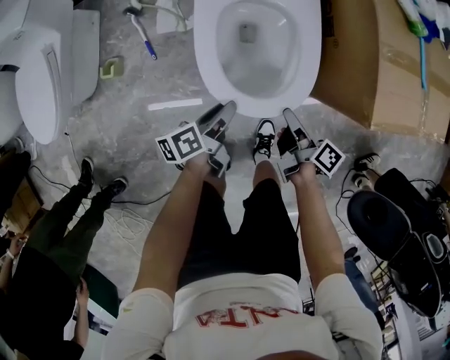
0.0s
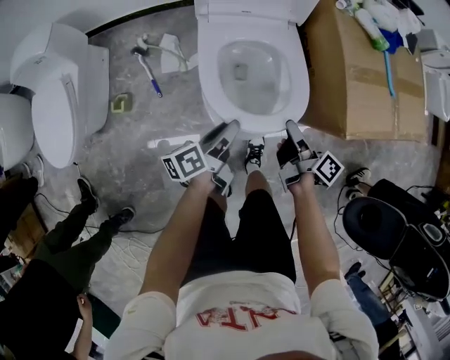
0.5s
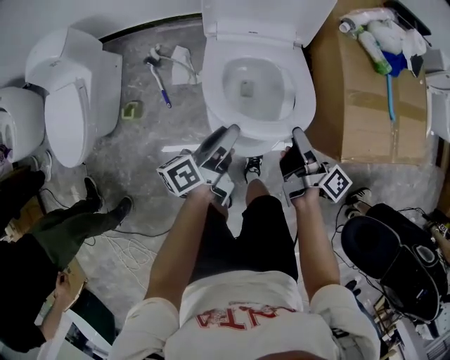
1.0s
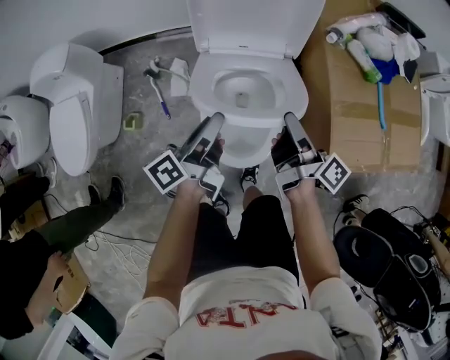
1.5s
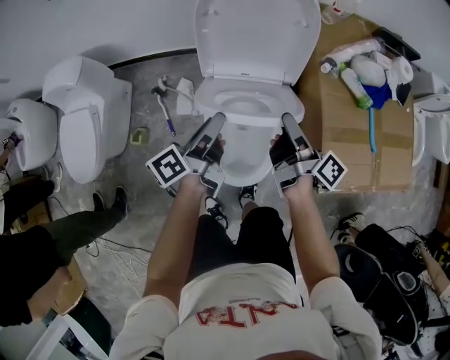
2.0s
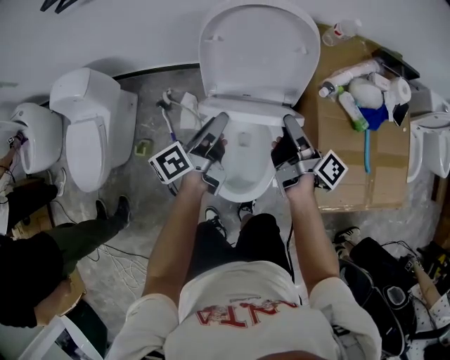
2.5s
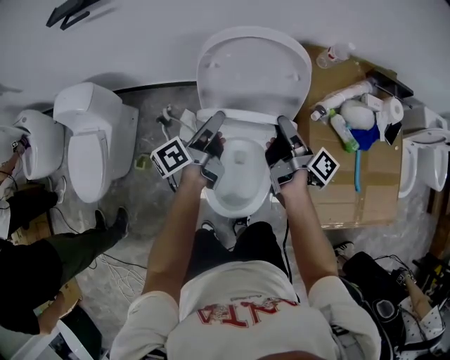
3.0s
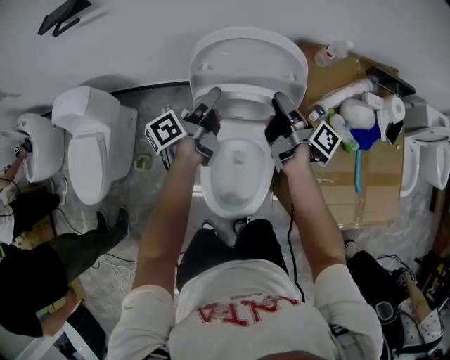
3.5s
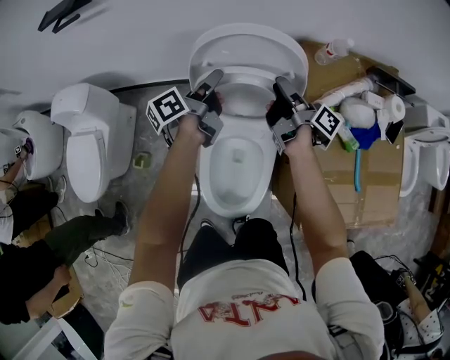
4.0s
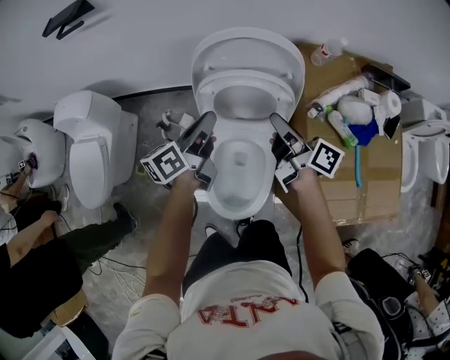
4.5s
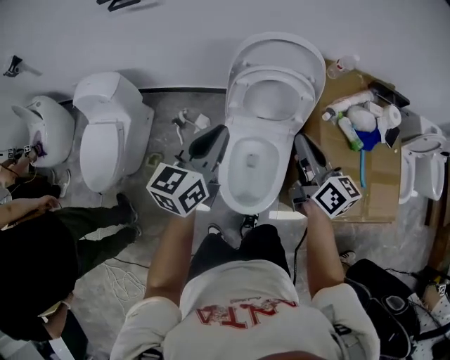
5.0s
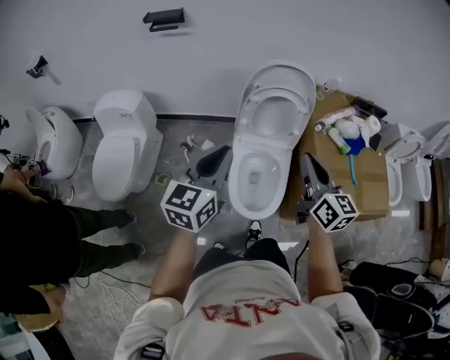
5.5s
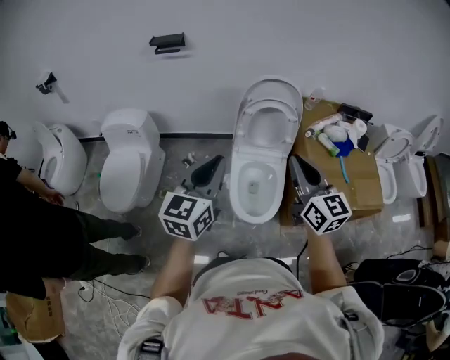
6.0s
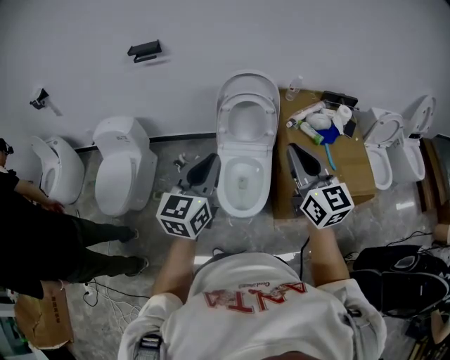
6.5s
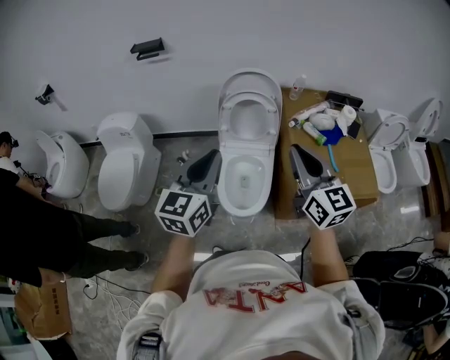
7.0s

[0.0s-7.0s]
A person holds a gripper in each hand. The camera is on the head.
0.0s to 2.0s: Both grippers travel together upward and forward, approximately 35 cm. The right gripper turns by some 20 degrees. Meanwhile the left gripper swivels some 20 degrees.
2.0s to 3.5s: The grippers both shift forward by approximately 20 cm.
3.5s to 5.0s: Both grippers move backward and upward, roughly 25 cm. The left gripper twists about 50 degrees clockwise, seen from behind, and closes; the right gripper twists roughly 50 degrees counterclockwise, seen from behind, and closes up.
5.0s to 7.0s: The two grippers go about 30 cm backward and upward. The right gripper changes its angle by approximately 30 degrees.

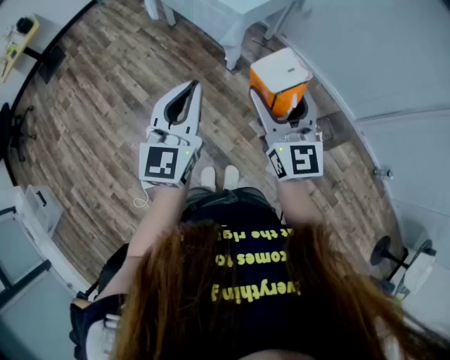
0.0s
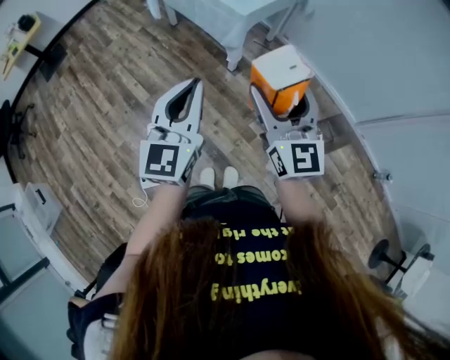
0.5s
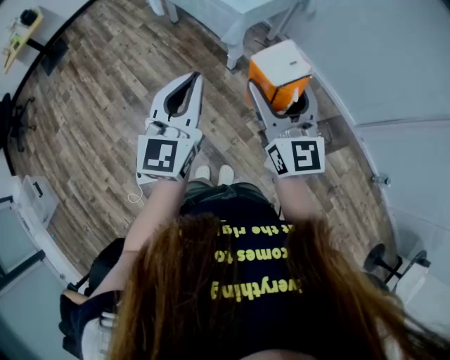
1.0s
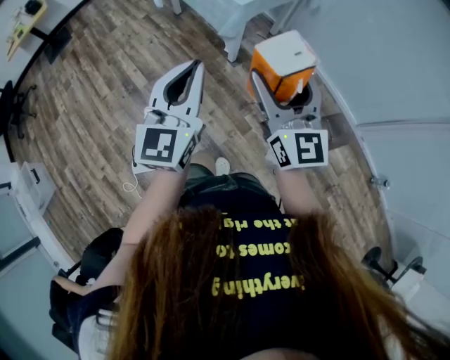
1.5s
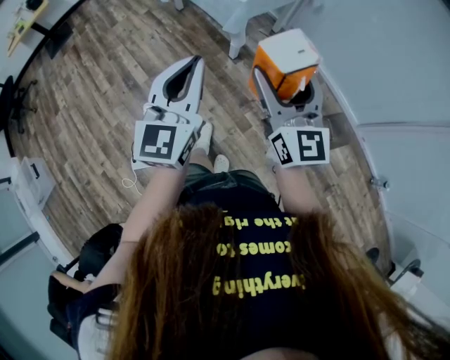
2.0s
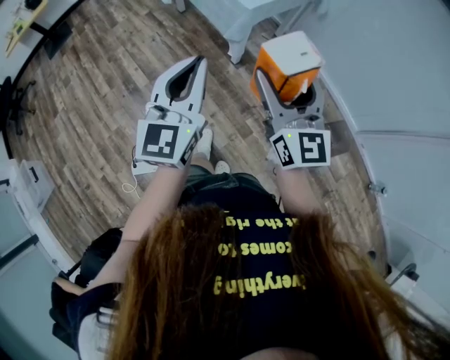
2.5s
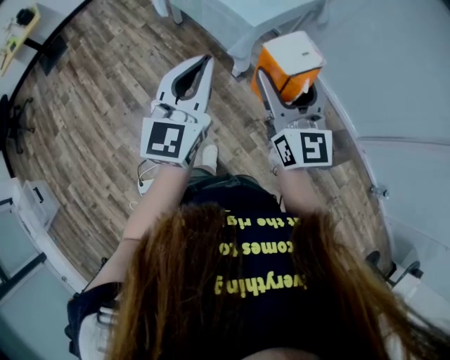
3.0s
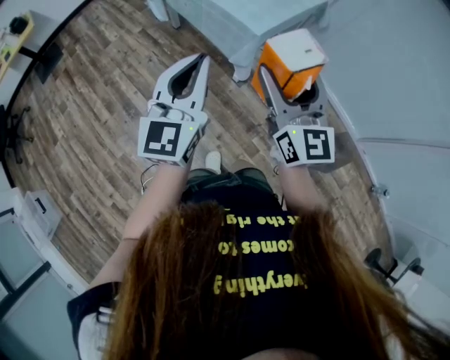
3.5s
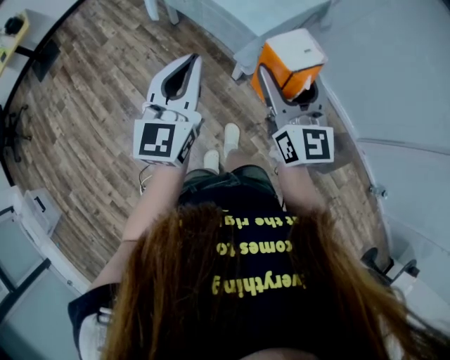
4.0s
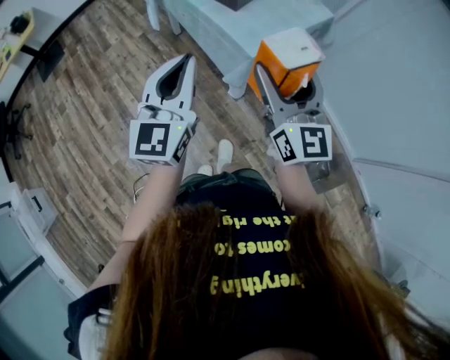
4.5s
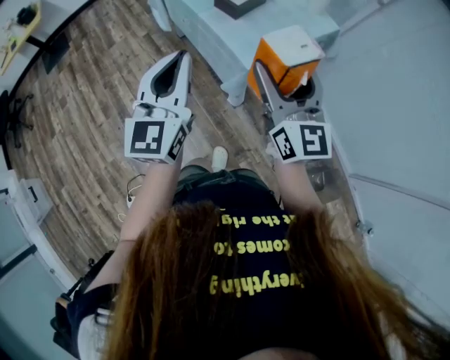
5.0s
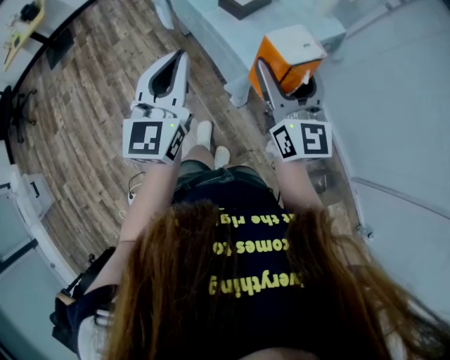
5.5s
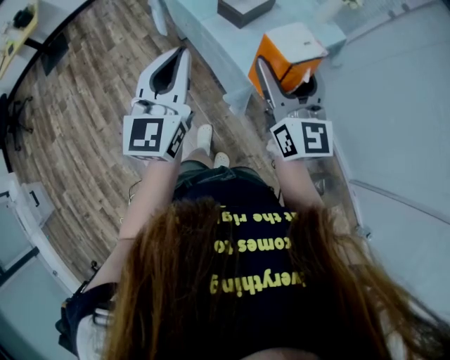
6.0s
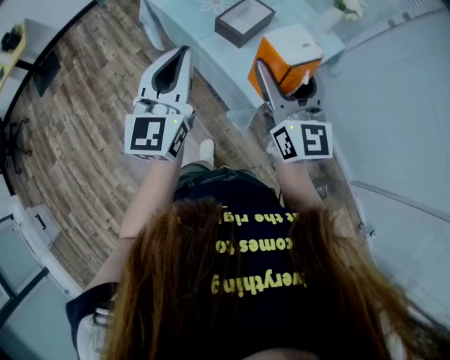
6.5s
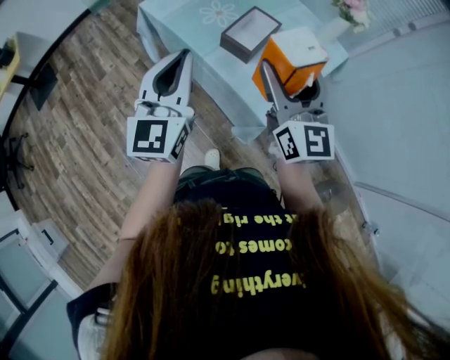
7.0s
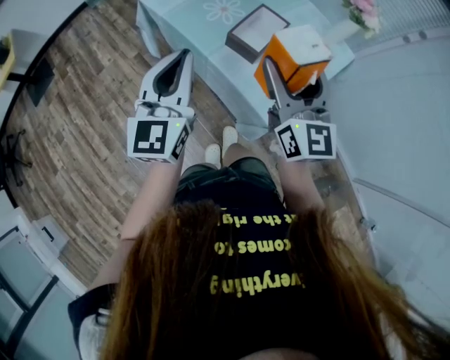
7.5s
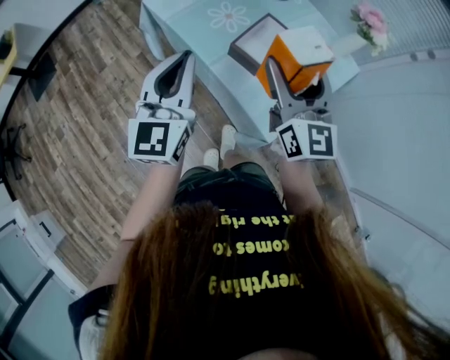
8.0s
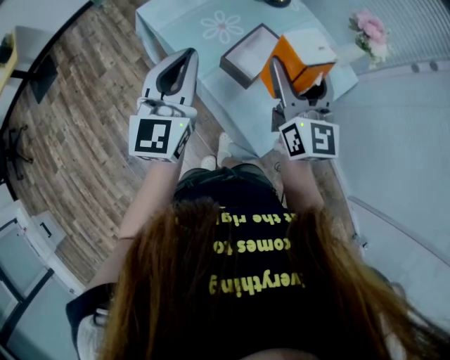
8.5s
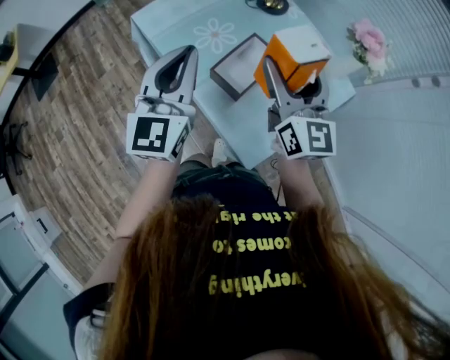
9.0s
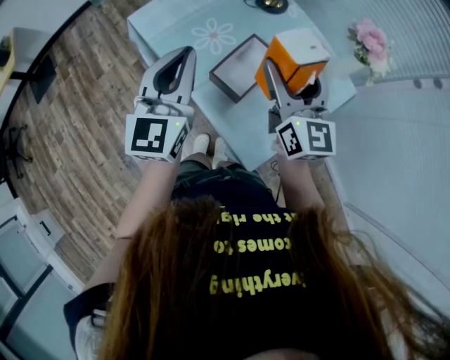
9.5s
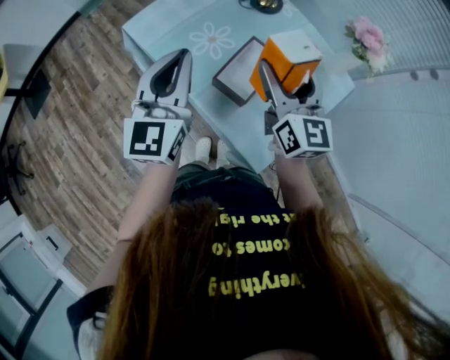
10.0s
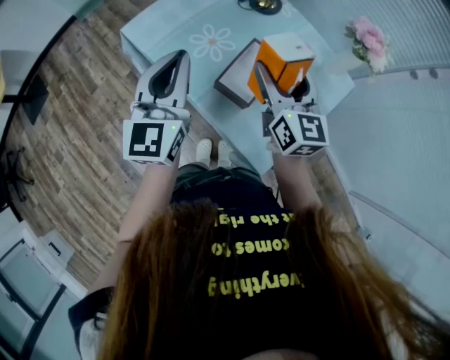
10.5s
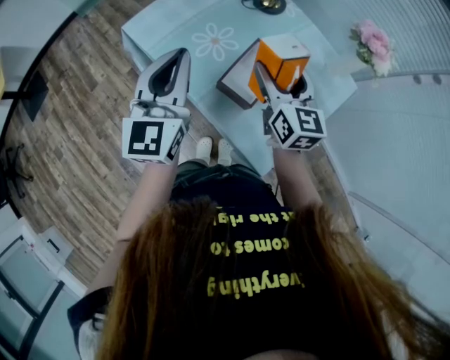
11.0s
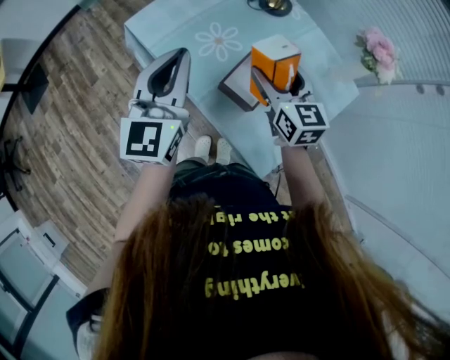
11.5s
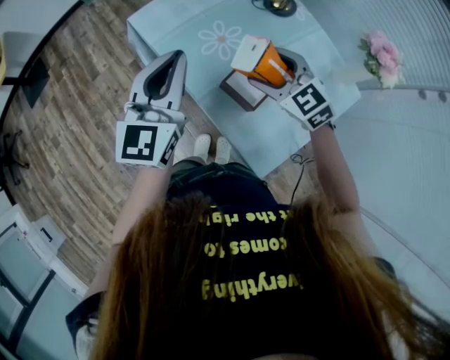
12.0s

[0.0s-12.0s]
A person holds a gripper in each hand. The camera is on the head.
0.0s to 2.0s: Both grippers travel together to the right, about 5 cm.
2.0s to 4.0s: The left gripper heads forward and to the left, covering roughly 25 cm. The right gripper goes roughly 25 cm forward.
4.0s to 6.0s: The grippers both shift forward by about 20 cm.
6.0s to 8.0s: Both grippers travel together forward, approximately 25 cm.
8.0s to 10.0s: The grippers both shift forward by approximately 15 cm.
10.0s to 12.0s: The right gripper is displaced downward and to the left by approximately 15 cm, and tilts its fingers some 30 degrees downward.

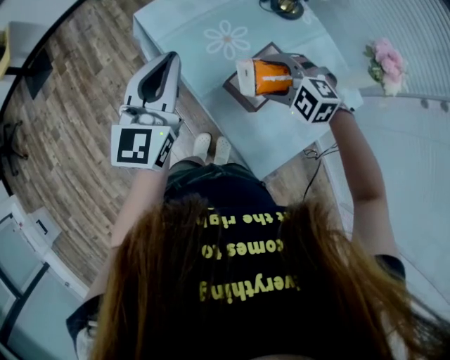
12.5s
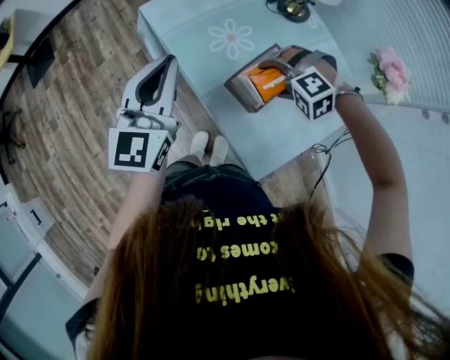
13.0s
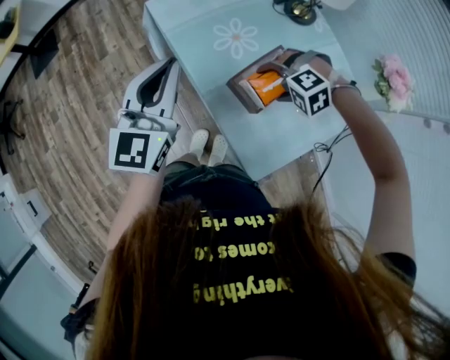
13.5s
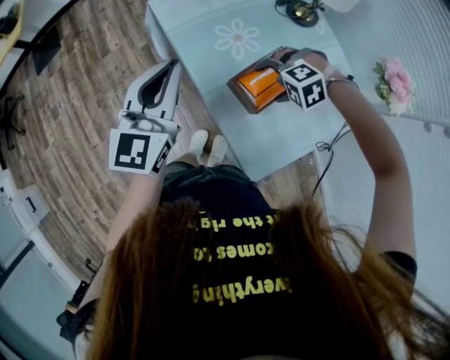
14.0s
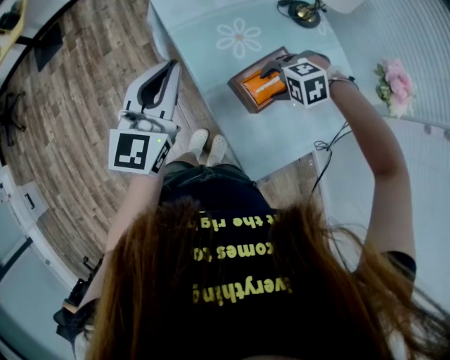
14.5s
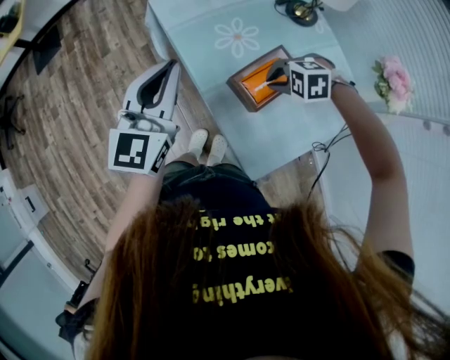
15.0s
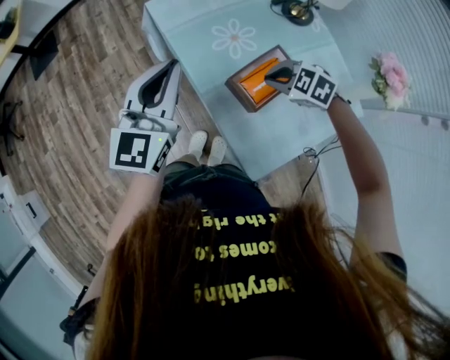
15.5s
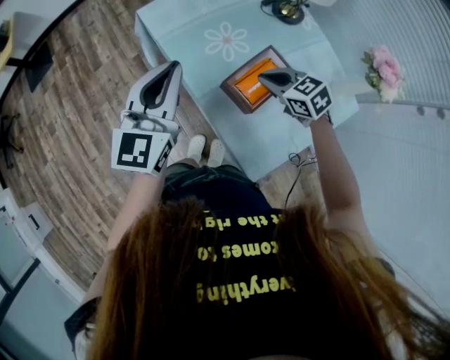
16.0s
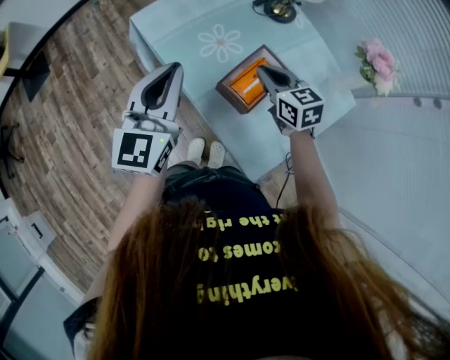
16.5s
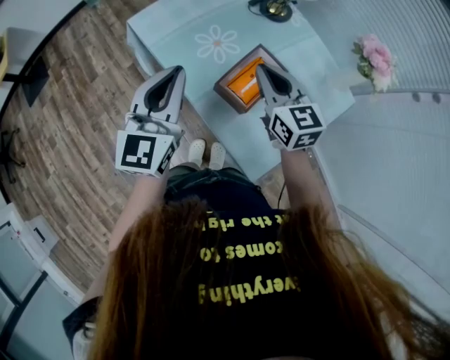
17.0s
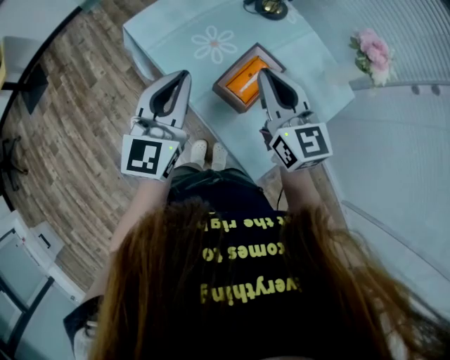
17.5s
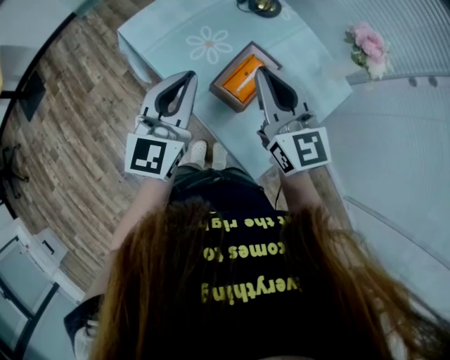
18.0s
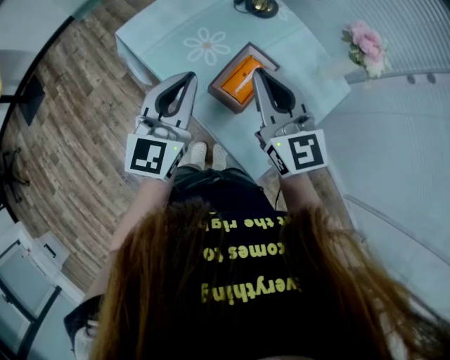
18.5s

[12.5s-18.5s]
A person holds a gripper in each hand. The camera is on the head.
12.5s to 14.5s: The right gripper goes approximately 5 cm downward, and changes its angle by approximately 40 degrees.
14.5s to 16.5s: The right gripper heads upward, covering about 5 cm, angles its fingers upward, by roughly 40 degrees, and closes up.
16.5s to 18.5s: The right gripper travels upward and backward by some 15 cm, and turns by approximately 30 degrees.

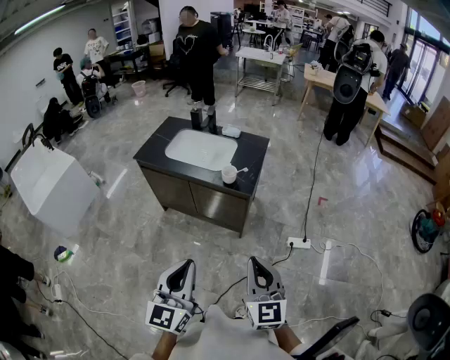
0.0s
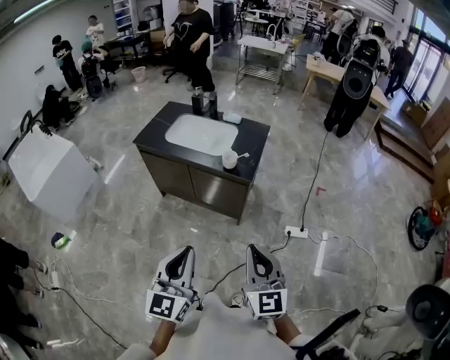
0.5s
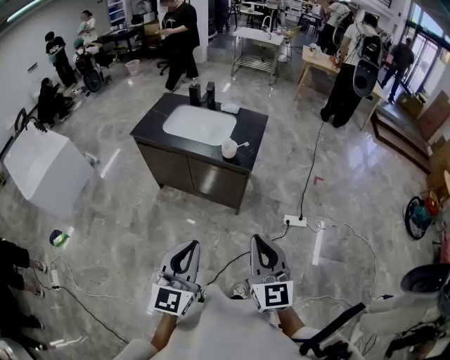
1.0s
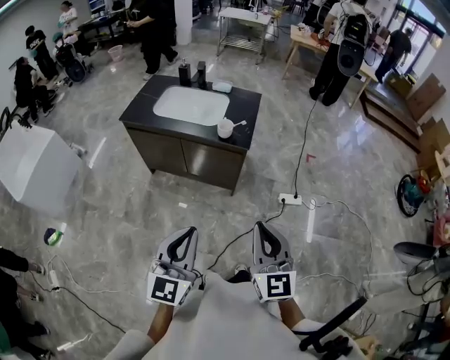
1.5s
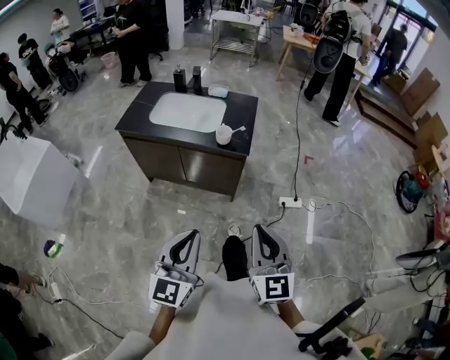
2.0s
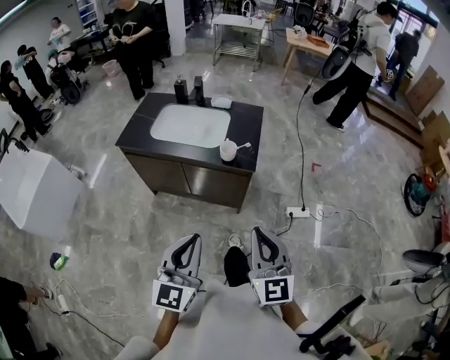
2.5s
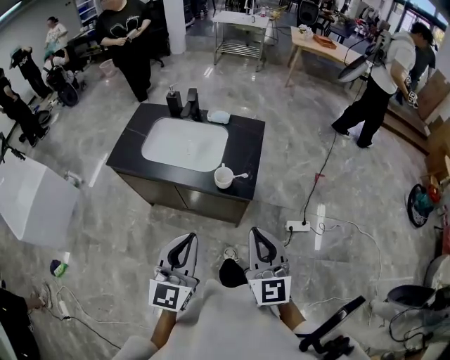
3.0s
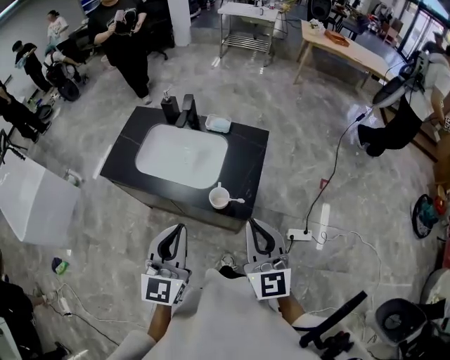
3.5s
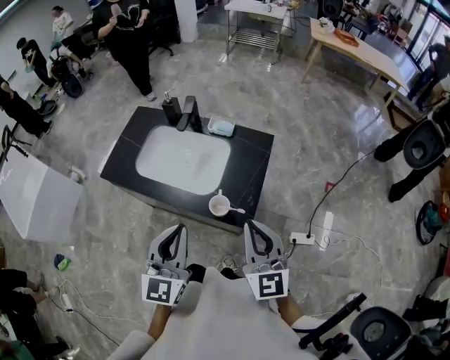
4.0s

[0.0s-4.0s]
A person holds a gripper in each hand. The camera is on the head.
0.0s to 2.0s: The left gripper changes place by about 5 cm.
2.0s to 4.0s: Both grippers travel together forward, some 40 cm.
